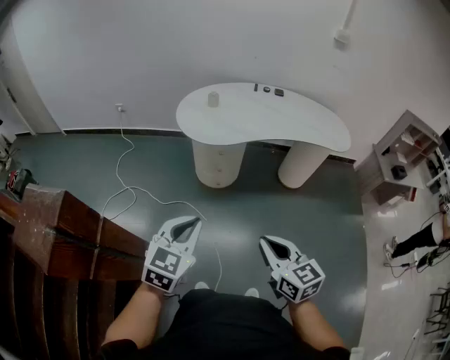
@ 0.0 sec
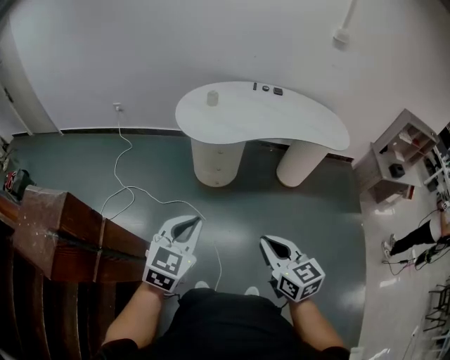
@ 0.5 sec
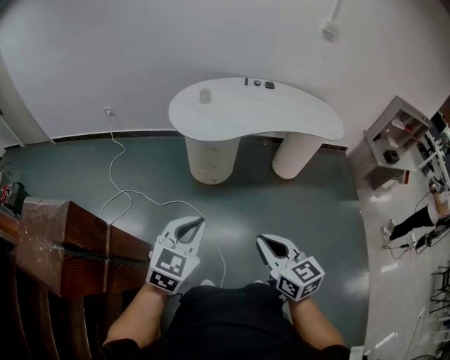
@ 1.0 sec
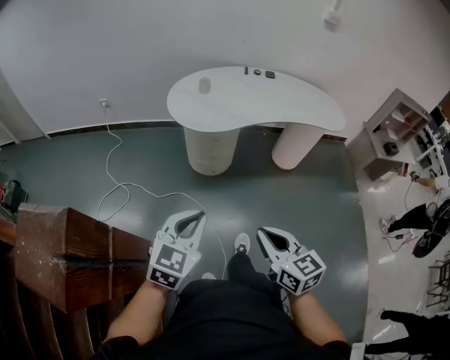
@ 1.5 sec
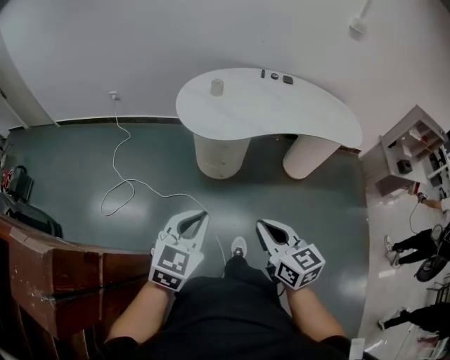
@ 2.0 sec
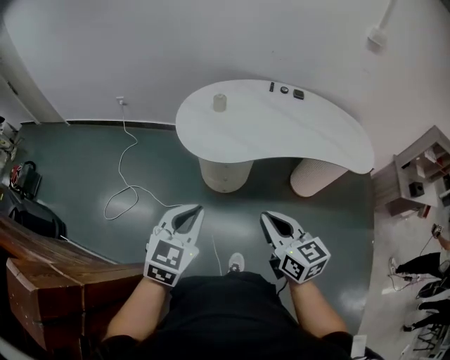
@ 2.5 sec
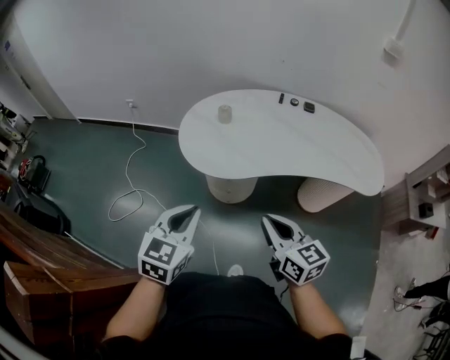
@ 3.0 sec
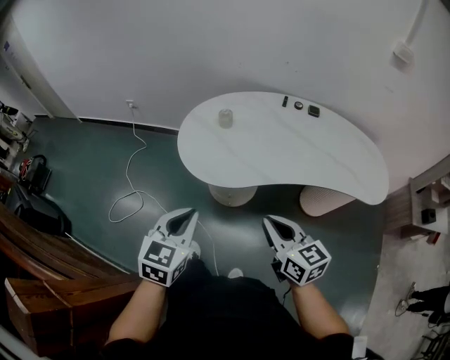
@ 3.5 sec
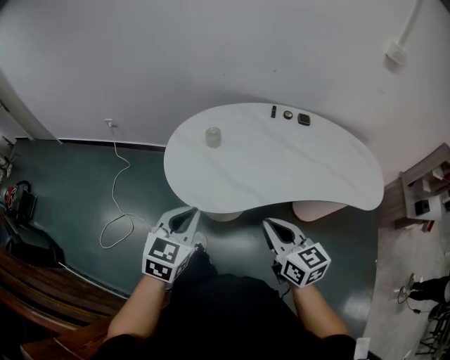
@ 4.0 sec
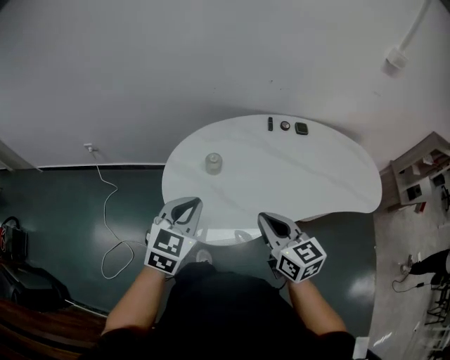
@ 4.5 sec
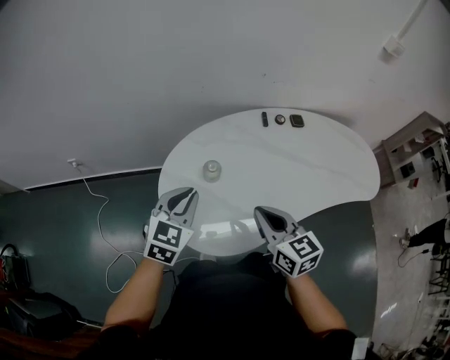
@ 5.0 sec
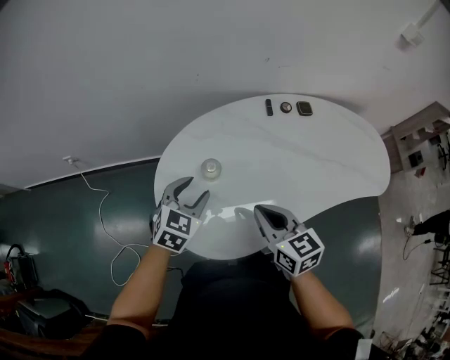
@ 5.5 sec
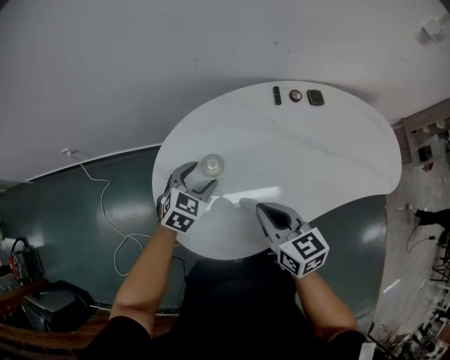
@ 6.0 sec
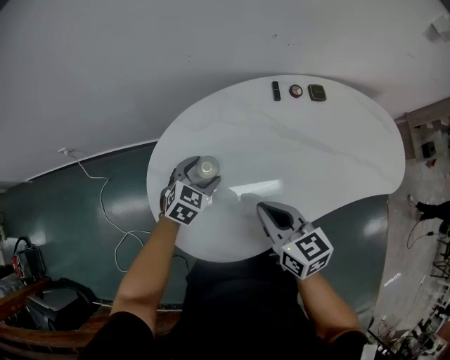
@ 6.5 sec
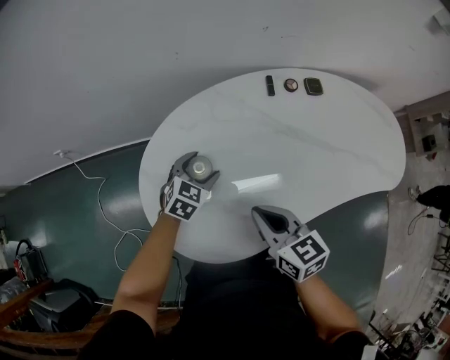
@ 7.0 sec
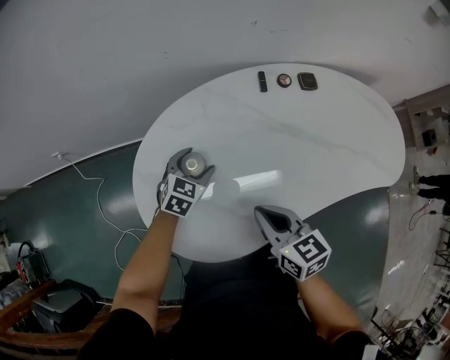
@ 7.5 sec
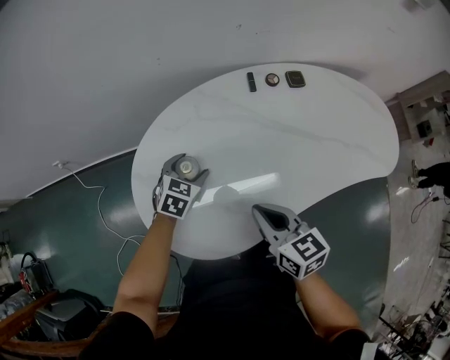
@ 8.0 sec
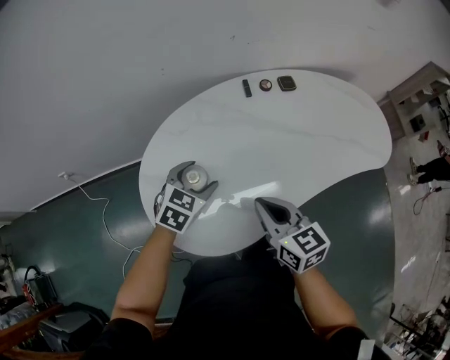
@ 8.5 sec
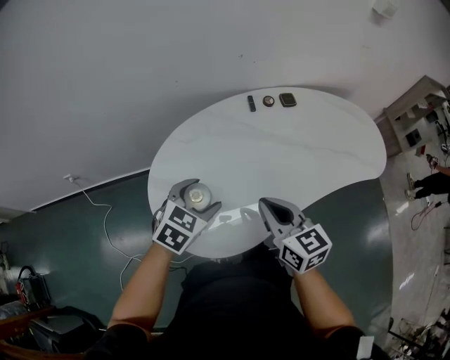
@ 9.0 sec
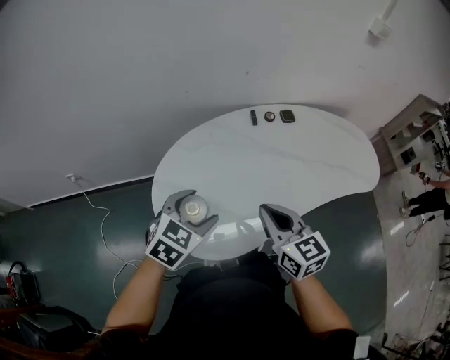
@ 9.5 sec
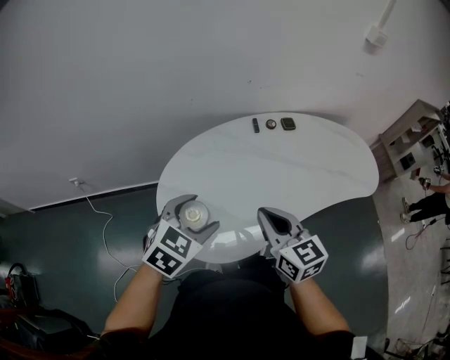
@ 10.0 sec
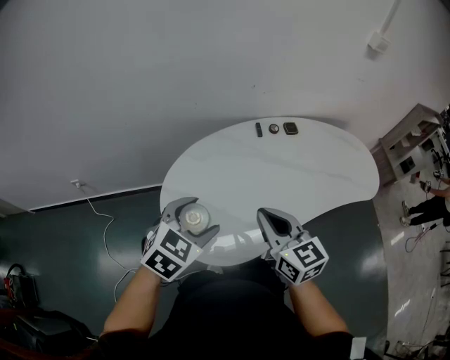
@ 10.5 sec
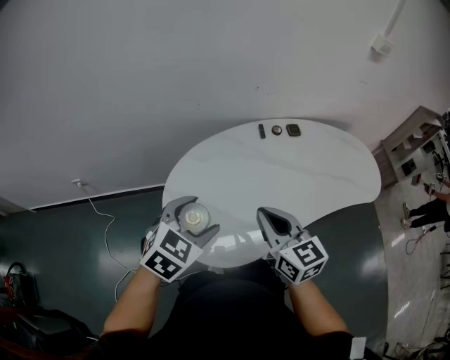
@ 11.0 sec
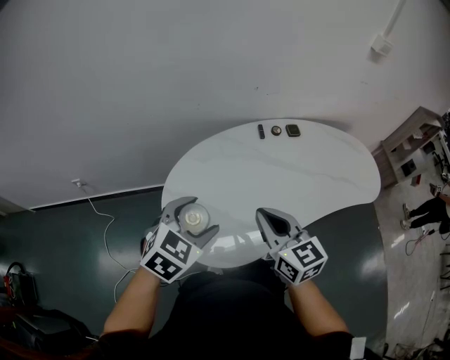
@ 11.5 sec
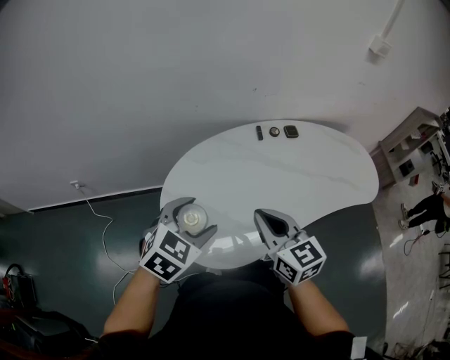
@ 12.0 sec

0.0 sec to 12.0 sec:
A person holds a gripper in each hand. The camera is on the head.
0.0 sec to 2.0 sec: Both grippers move forward, approximately 10 cm.
2.0 sec to 4.0 sec: The grippers both shift forward by roughly 35 cm.
4.0 sec to 6.0 sec: The left gripper heads forward and downward, covering some 40 cm, changes its angle by approximately 30 degrees, and opens up, while the right gripper is displaced forward and to the left by approximately 30 cm.
6.0 sec to 8.0 sec: The left gripper shifts by approximately 5 cm. Meanwhile the right gripper heads to the right, covering roughly 5 cm.
8.0 sec to 10.0 sec: The left gripper shifts roughly 30 cm upward and backward, while the right gripper goes some 10 cm upward.
10.0 sec to 12.0 sec: There are only small adjustments of the grippers.

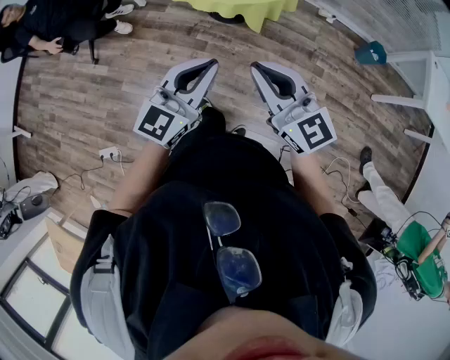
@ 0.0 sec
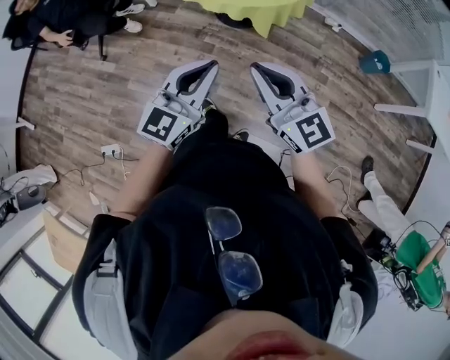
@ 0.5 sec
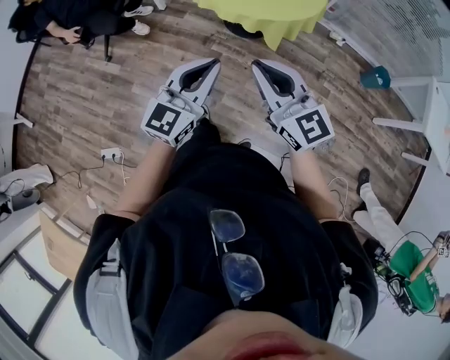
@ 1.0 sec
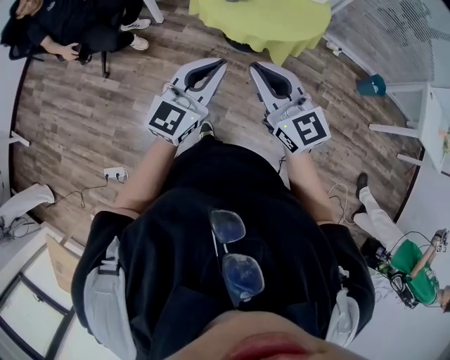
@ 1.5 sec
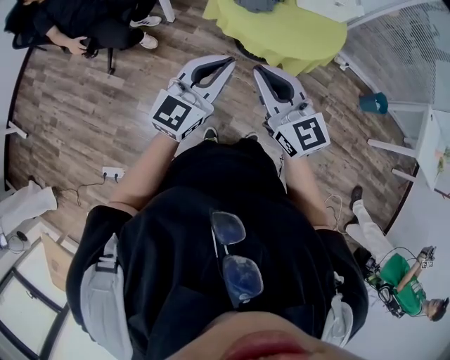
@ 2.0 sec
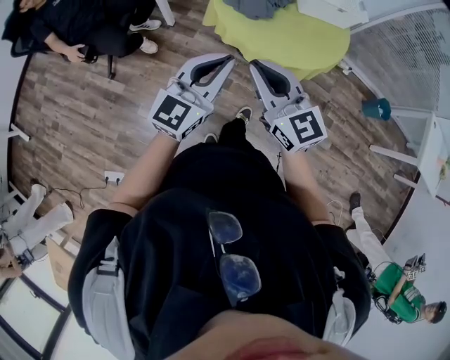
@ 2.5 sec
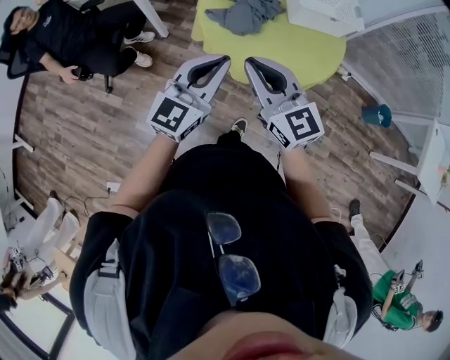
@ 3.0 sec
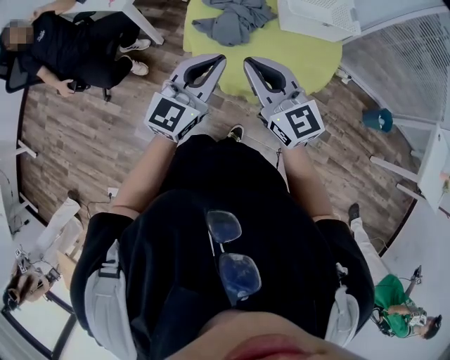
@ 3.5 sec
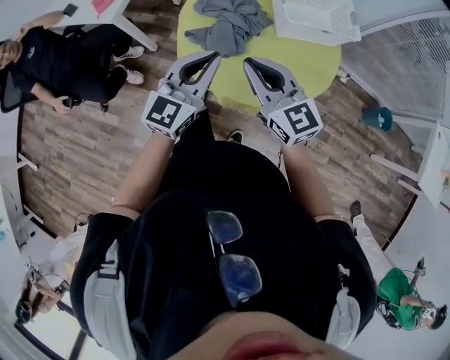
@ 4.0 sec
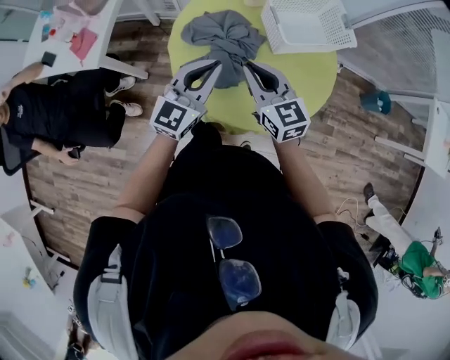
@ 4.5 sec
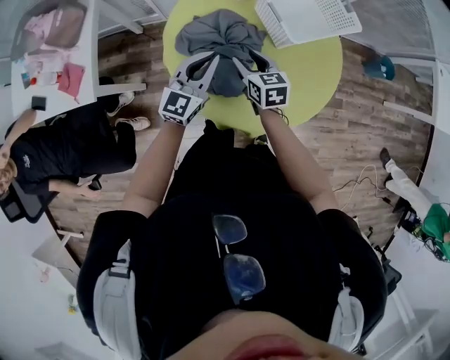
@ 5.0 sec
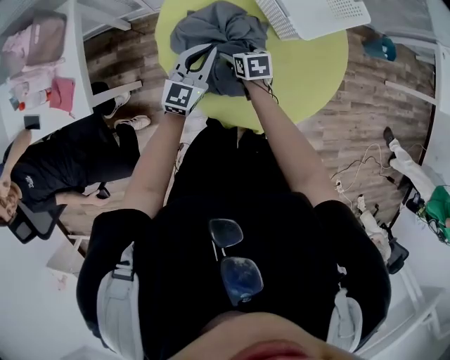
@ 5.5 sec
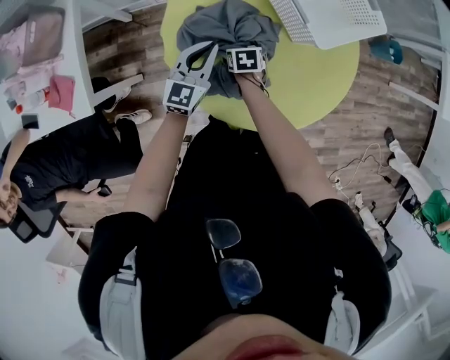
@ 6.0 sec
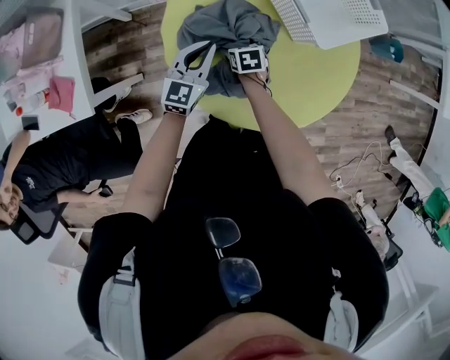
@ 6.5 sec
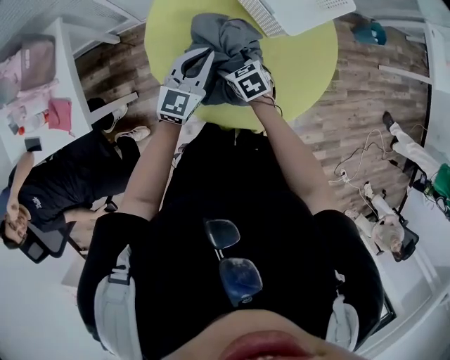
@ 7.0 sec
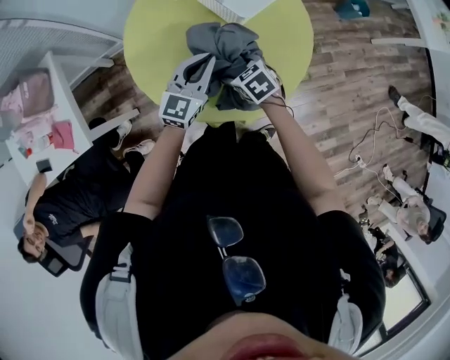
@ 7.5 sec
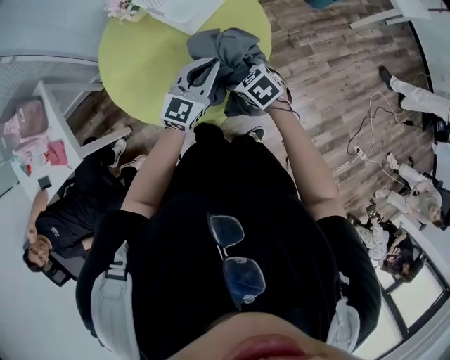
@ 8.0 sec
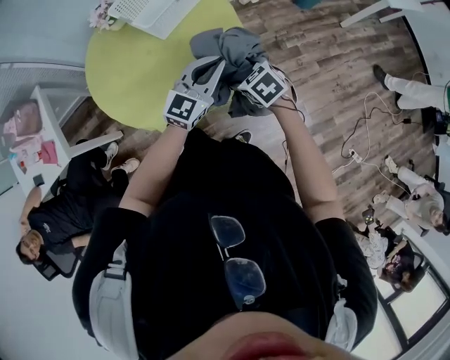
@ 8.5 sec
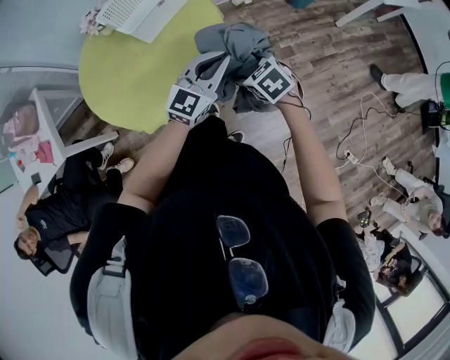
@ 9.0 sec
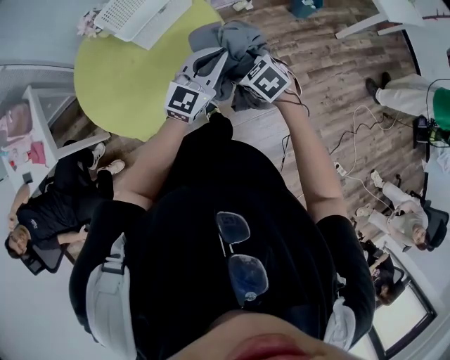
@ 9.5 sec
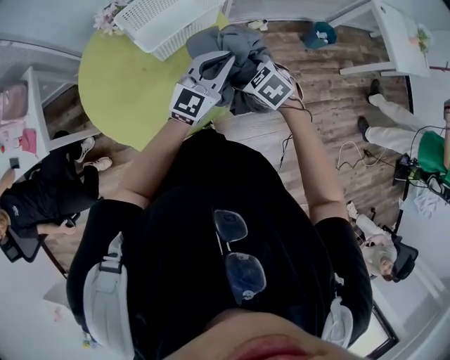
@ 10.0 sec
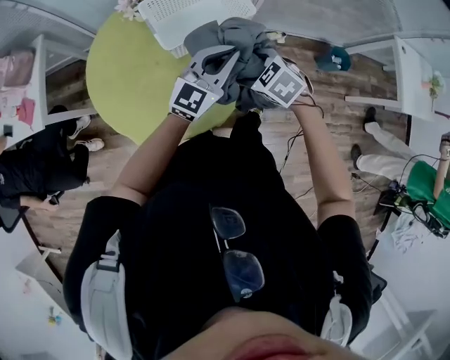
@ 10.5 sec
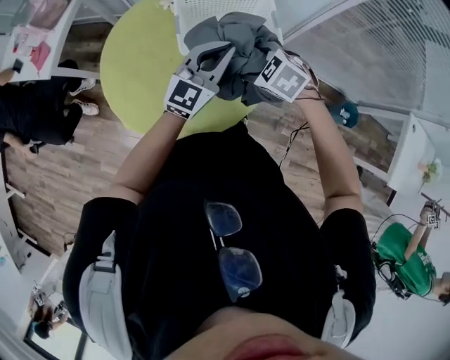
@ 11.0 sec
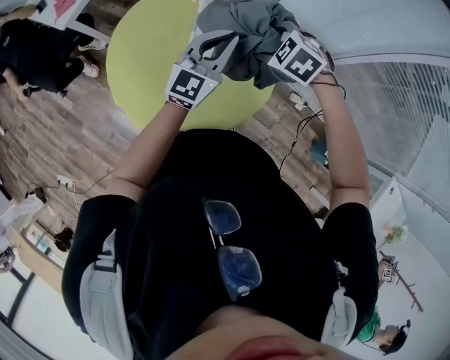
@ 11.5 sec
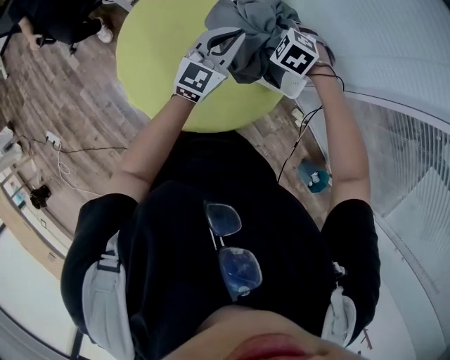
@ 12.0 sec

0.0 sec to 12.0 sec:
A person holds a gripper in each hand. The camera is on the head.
0.0 sec to 2.0 sec: The two grippers go about 30 cm to the left and forward.
2.0 sec to 4.0 sec: Both grippers move forward, roughly 35 cm.
4.0 sec to 6.0 sec: The left gripper ends up approximately 40 cm from where it was, and changes its angle by approximately 20 degrees; the right gripper is displaced downward by roughly 40 cm, points its fingers some 60 degrees further downward, and opens up.
6.0 sec to 8.0 sec: The left gripper heads to the right and backward, covering about 35 cm, and rotates approximately 30 degrees. The right gripper heads to the right, upward and backward, covering roughly 40 cm, and rotates approximately 20 degrees.
8.0 sec to 10.0 sec: Both grippers move to the right and forward, roughly 20 cm. The right gripper turns by approximately 20 degrees.
10.0 sec to 12.0 sec: The left gripper moves roughly 30 cm, and swivels approximately 60 degrees, while the right gripper travels upward and back again, approximately 5 cm each way, and twists roughly 80 degrees counterclockwise, seen from behind.

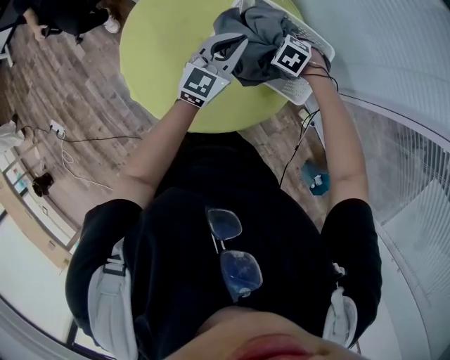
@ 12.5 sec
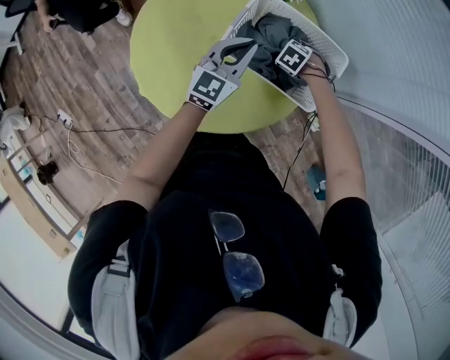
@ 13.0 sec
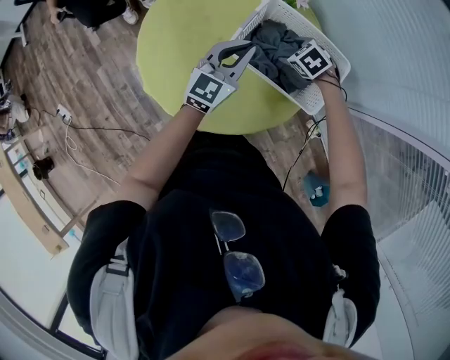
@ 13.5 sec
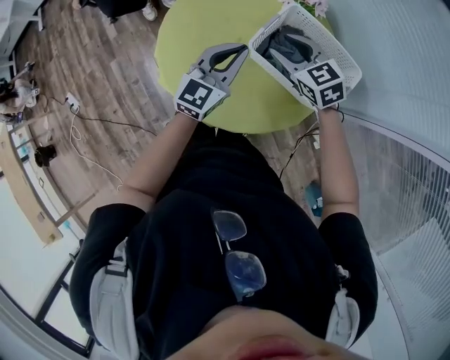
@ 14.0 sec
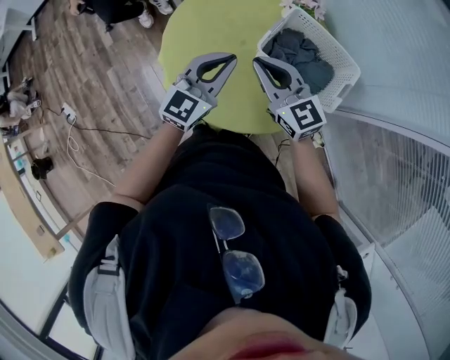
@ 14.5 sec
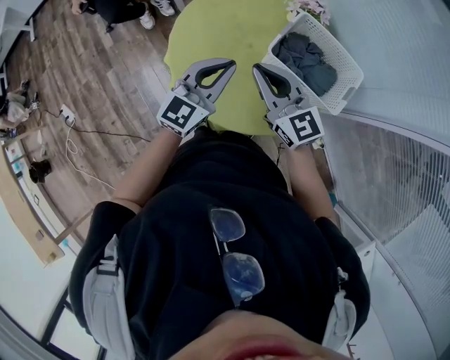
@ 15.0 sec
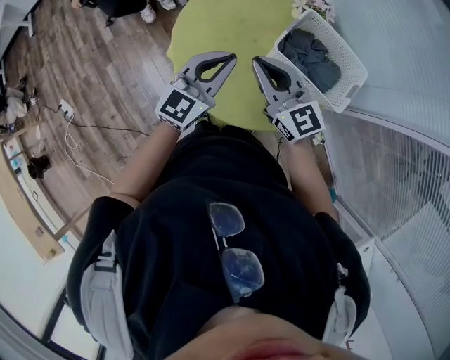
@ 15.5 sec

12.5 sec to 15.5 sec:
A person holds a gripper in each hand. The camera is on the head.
12.5 sec to 14.0 sec: The left gripper moves about 15 cm. Meanwhile the right gripper moves upward, roughly 15 cm, and tips its fingers upward by roughly 50 degrees.
14.0 sec to 15.5 sec: The right gripper goes about 20 cm to the left, upward and backward, turns by roughly 30 degrees, and closes its fingers. The left gripper shifts about 10 cm to the left.
